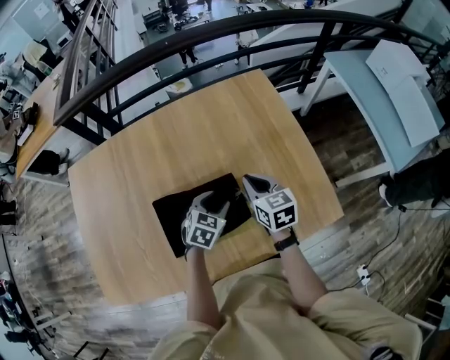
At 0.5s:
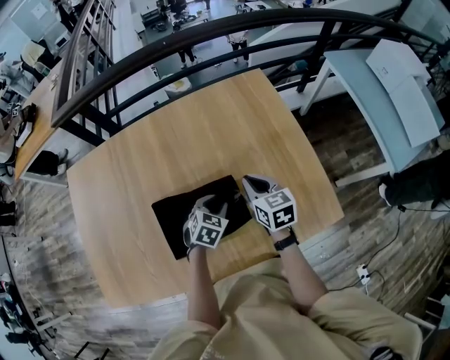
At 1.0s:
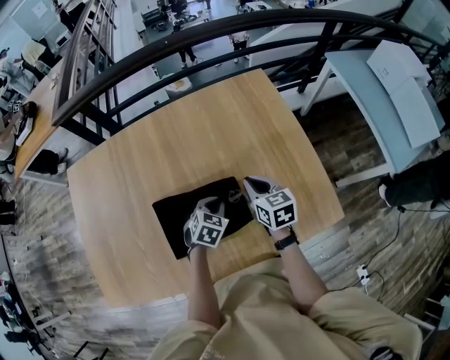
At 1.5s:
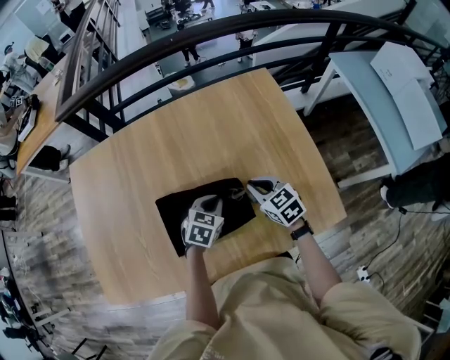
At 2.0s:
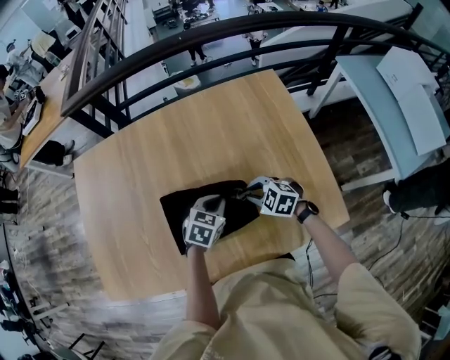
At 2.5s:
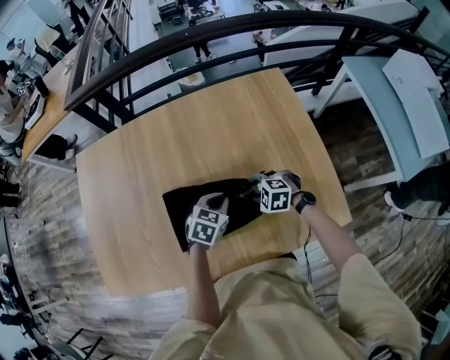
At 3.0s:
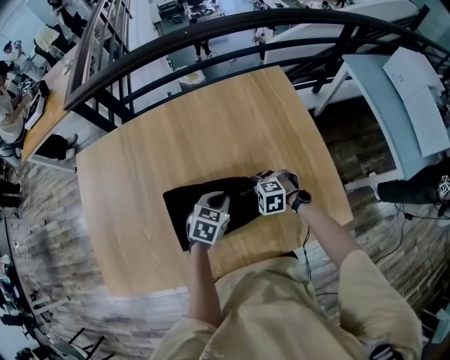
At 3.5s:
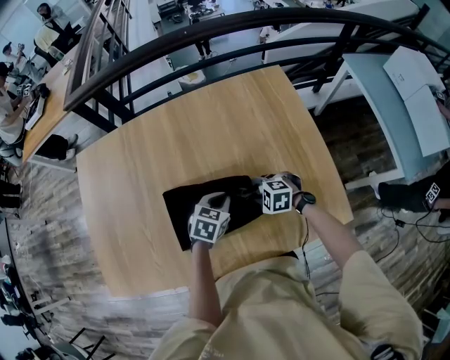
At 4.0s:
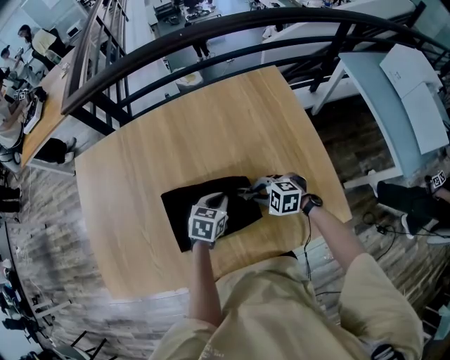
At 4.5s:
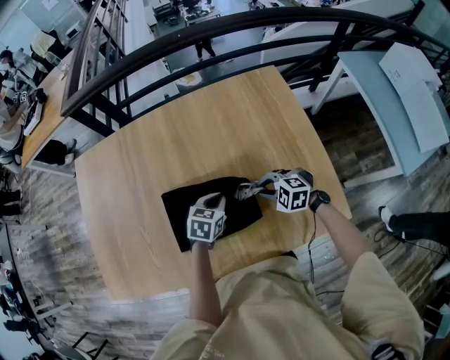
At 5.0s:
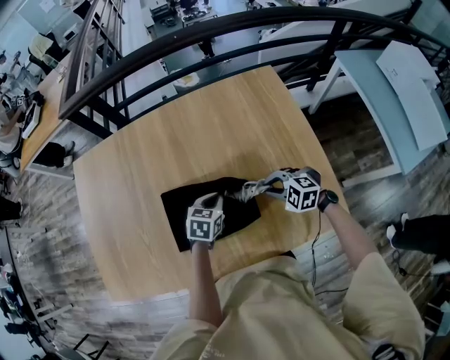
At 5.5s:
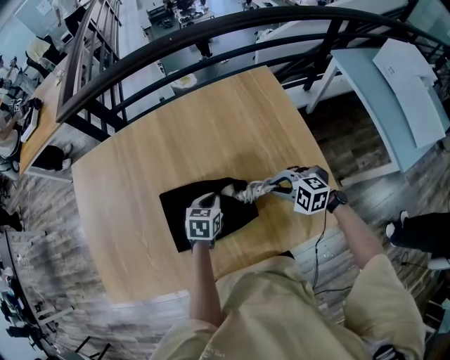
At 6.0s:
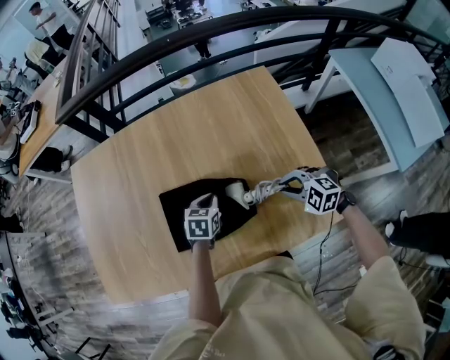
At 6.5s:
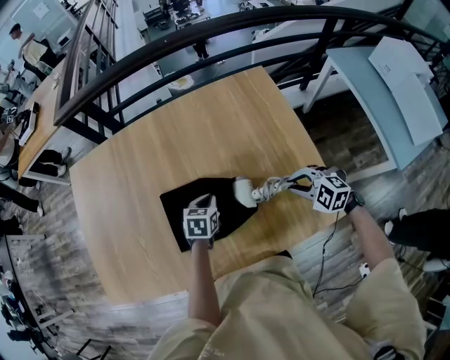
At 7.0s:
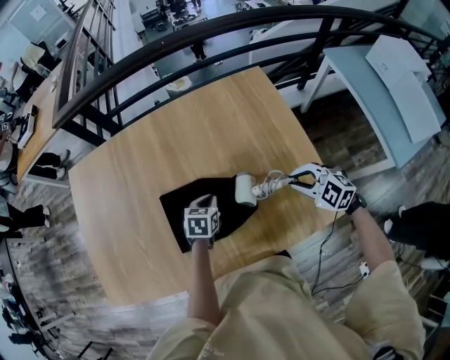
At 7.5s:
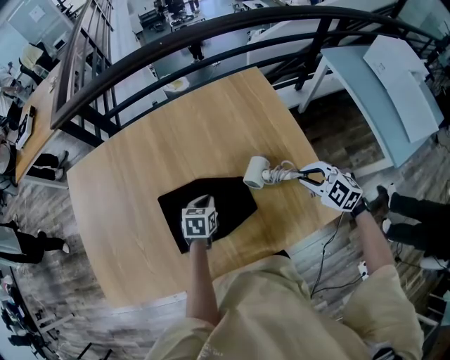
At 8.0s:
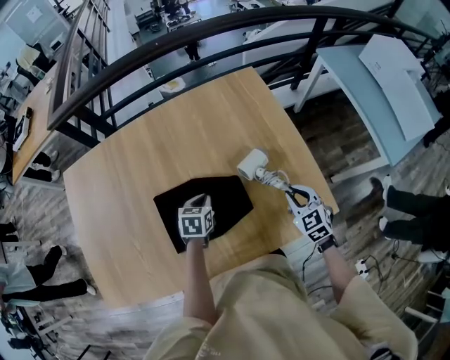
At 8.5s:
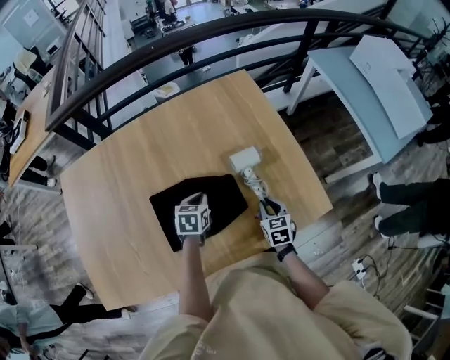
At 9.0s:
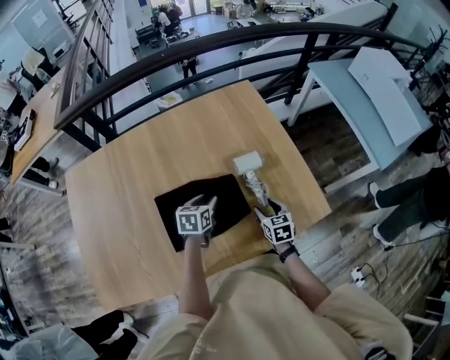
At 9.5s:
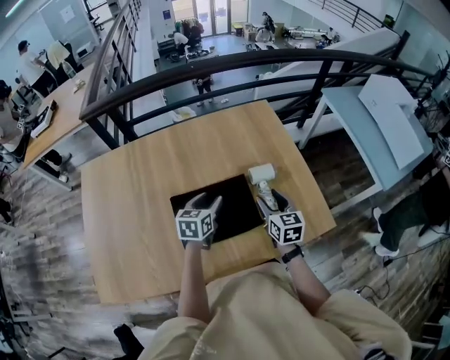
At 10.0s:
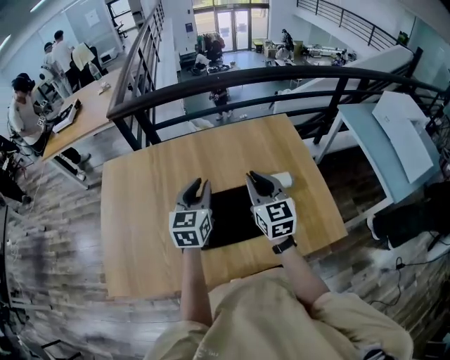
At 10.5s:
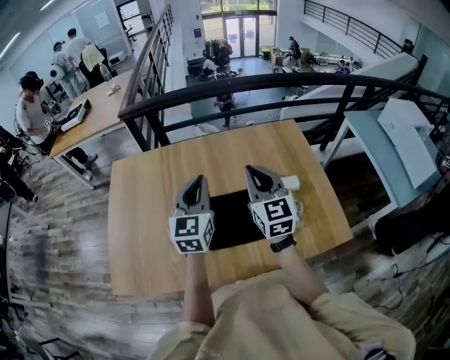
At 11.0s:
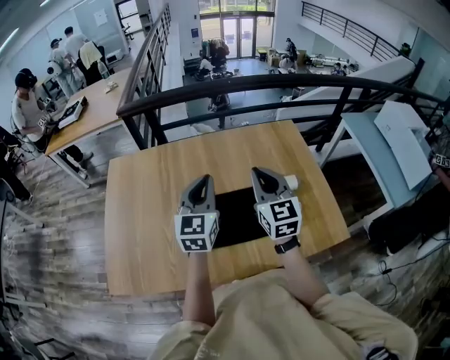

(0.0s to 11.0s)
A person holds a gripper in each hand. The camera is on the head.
0.0s - 2.0s: The right gripper shifts approximately 10 cm downward, and rotates some 60 degrees. Meanwhile the left gripper closes up.
2.0s - 3.5s: The right gripper changes place by some 5 cm.
3.5s - 5.5s: The right gripper heads to the right and upward, covering some 10 cm.
5.5s - 7.5s: The right gripper shifts about 10 cm to the right and upward, and swivels approximately 20 degrees.
7.5s - 9.0s: The left gripper opens its fingers; the right gripper shifts roughly 15 cm downward, to the left and backward, twists some 50 degrees clockwise, seen from behind, and opens up.
9.0s - 11.0s: The two grippers go roughly 35 cm upward and to the left. The left gripper points its fingers approximately 40 degrees further upward, and closes up; the right gripper points its fingers some 40 degrees further upward, and closes up.

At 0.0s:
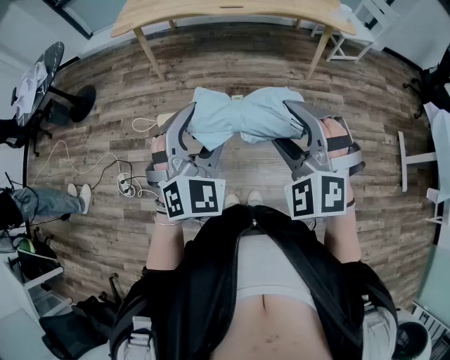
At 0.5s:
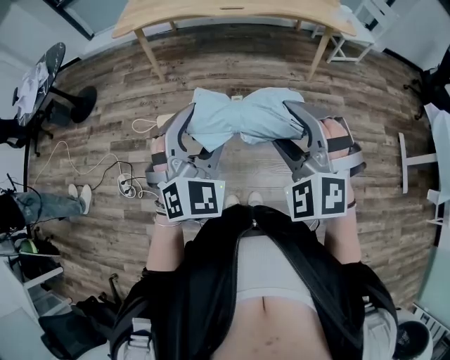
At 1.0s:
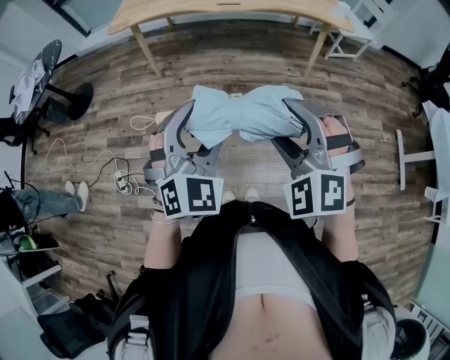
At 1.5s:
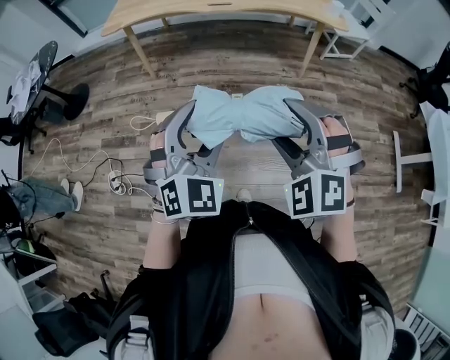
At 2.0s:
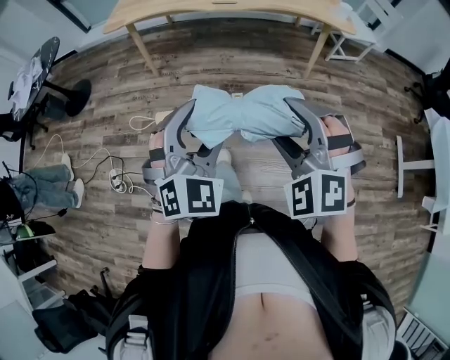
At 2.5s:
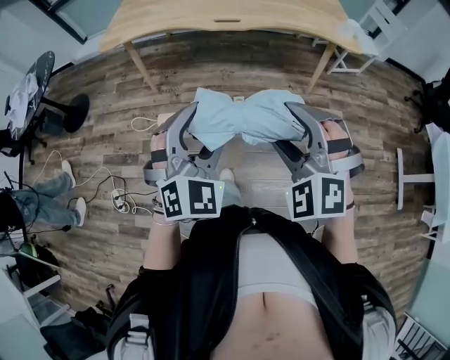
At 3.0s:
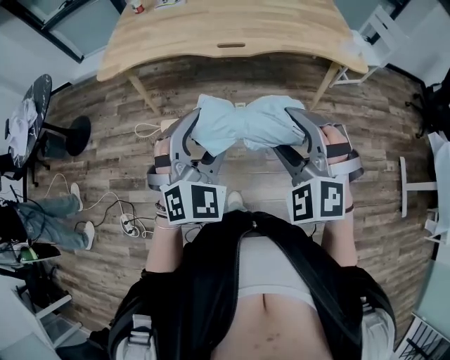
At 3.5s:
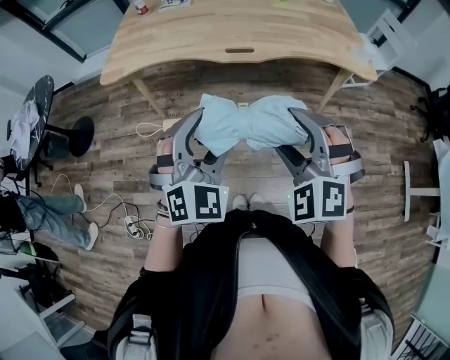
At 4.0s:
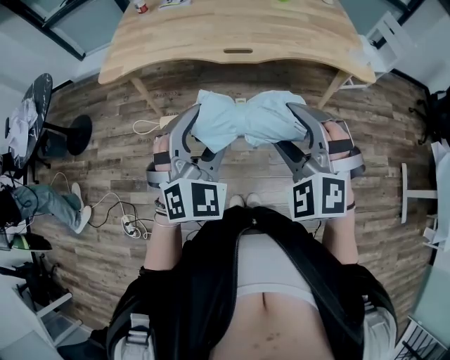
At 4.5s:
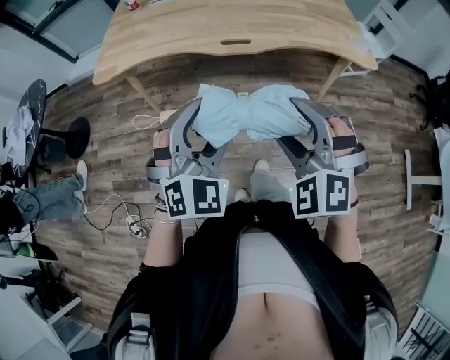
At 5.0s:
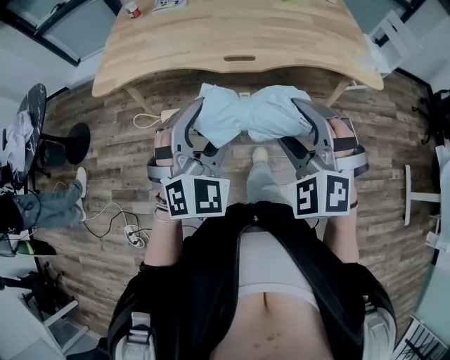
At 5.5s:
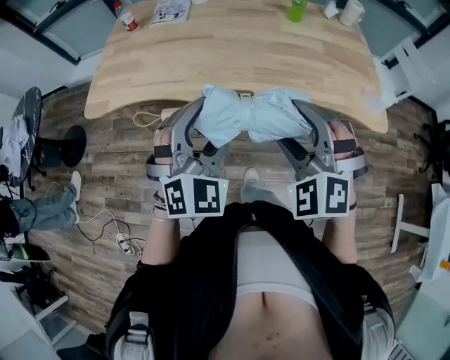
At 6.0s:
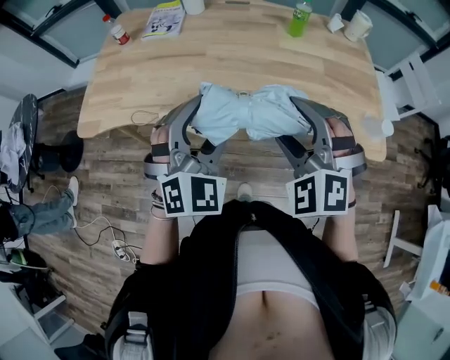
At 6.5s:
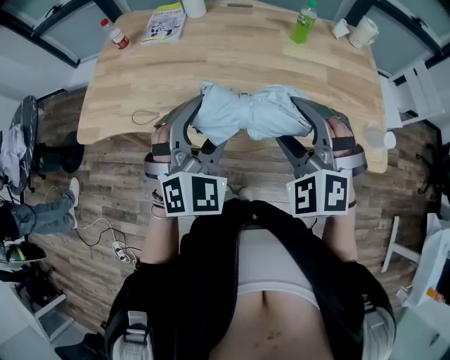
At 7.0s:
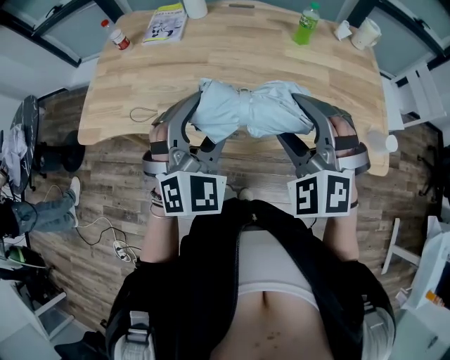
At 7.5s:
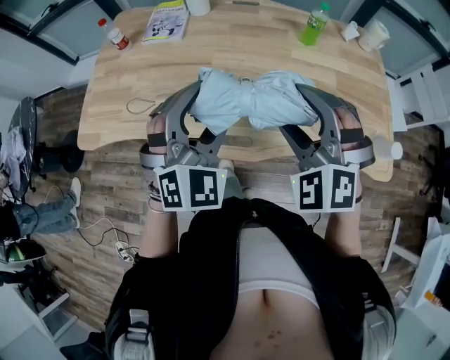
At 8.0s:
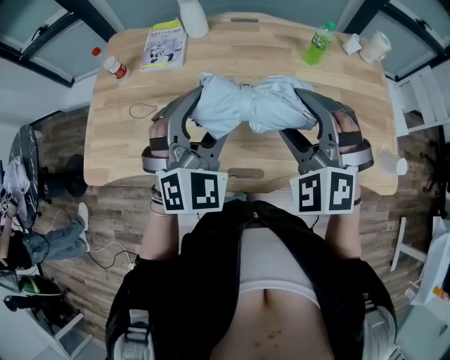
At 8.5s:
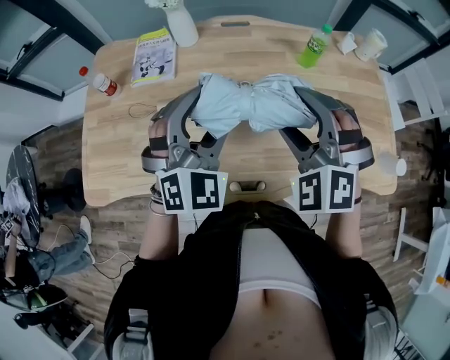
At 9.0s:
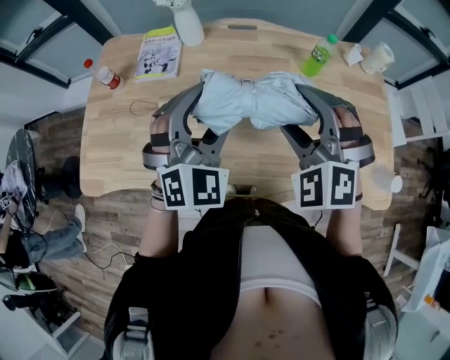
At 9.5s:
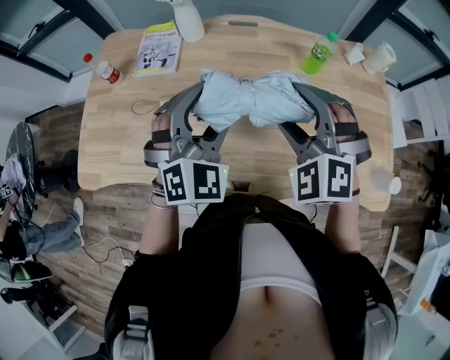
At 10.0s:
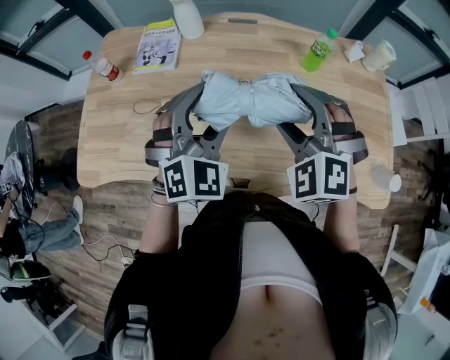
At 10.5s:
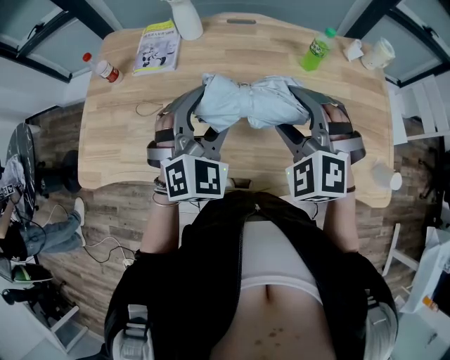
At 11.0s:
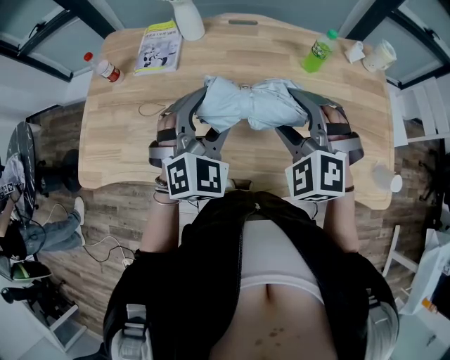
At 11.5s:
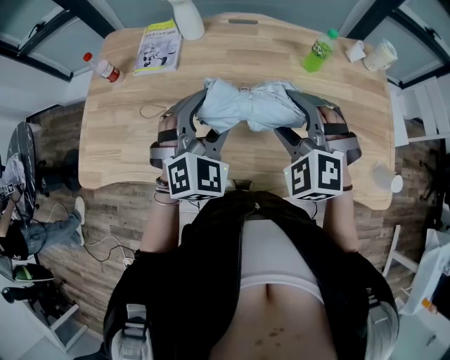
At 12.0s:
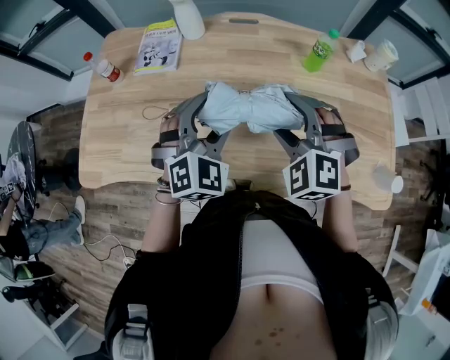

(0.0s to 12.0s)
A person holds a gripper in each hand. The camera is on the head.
0.0s - 2.0s: Both grippers move to the right, some 5 cm.
2.0s - 4.0s: The two grippers go about 30 cm forward.
4.0s - 6.0s: Both grippers move forward, approximately 35 cm.
6.0s - 8.0s: The two grippers go some 20 cm forward.
8.0s - 10.0s: The two grippers go some 5 cm forward.
10.0s - 12.0s: The grippers make only small movements.

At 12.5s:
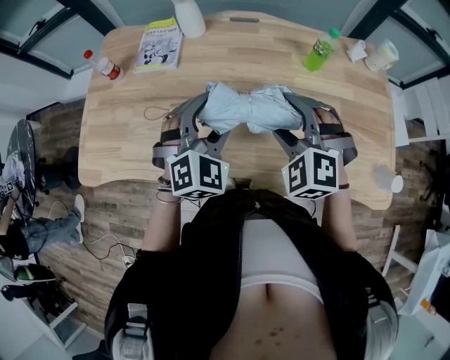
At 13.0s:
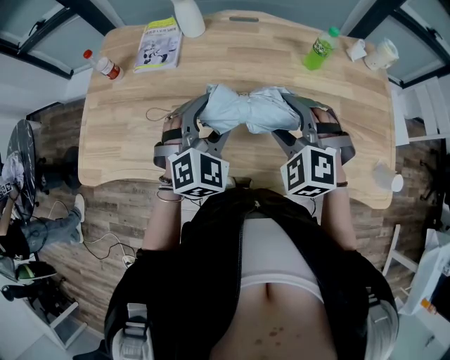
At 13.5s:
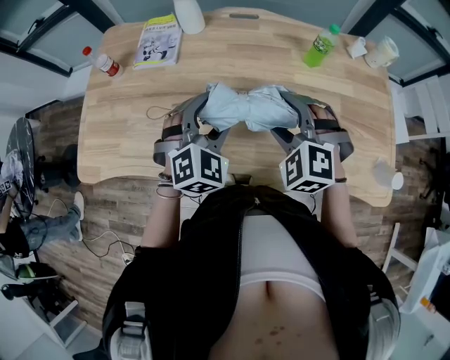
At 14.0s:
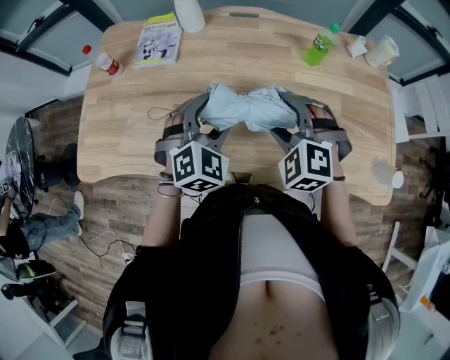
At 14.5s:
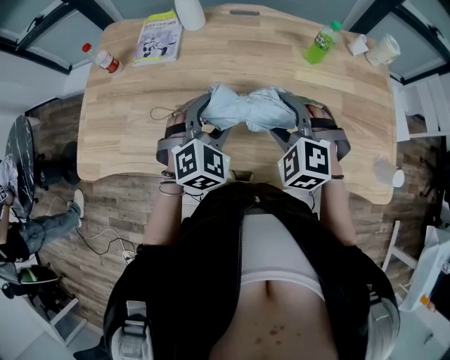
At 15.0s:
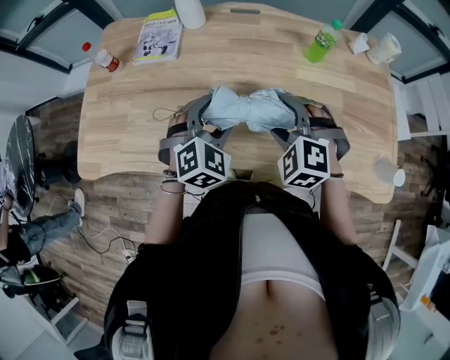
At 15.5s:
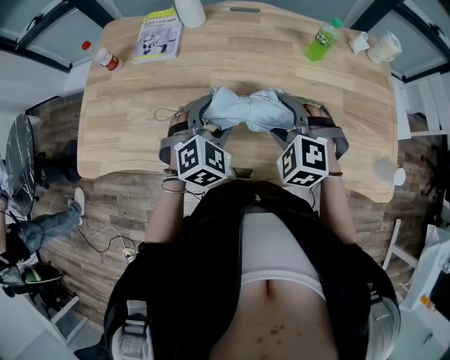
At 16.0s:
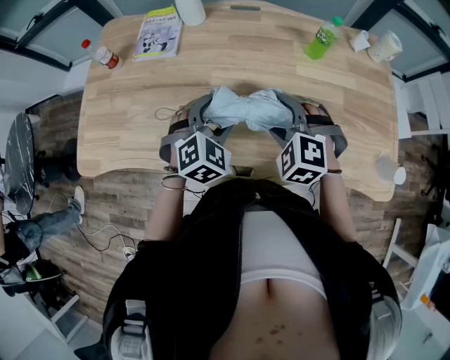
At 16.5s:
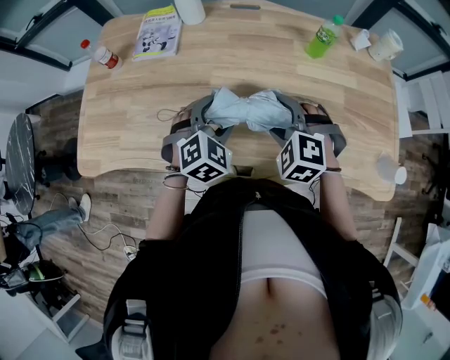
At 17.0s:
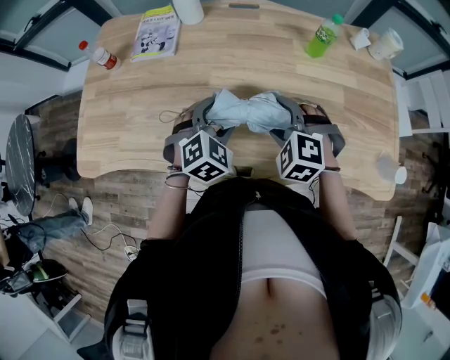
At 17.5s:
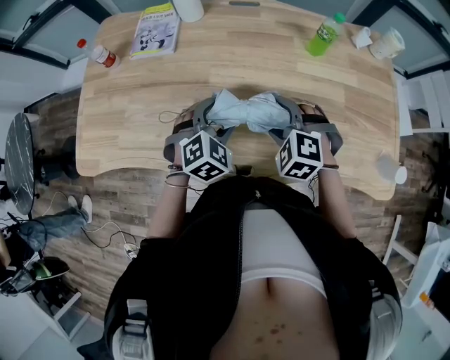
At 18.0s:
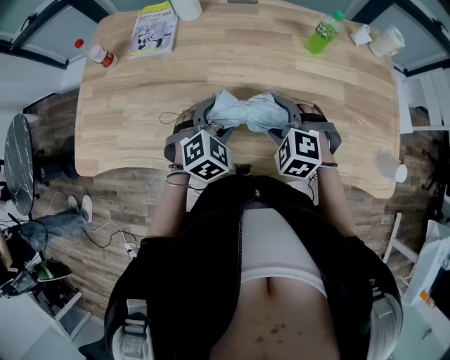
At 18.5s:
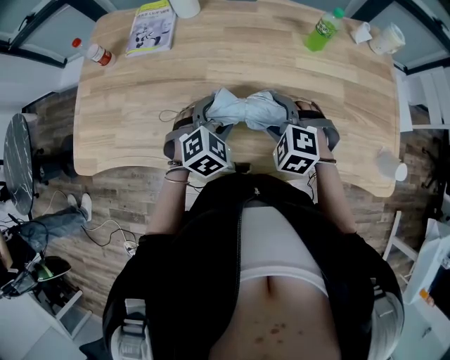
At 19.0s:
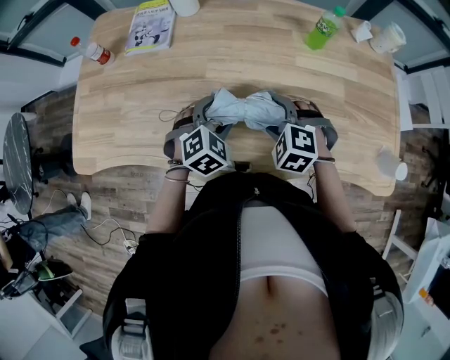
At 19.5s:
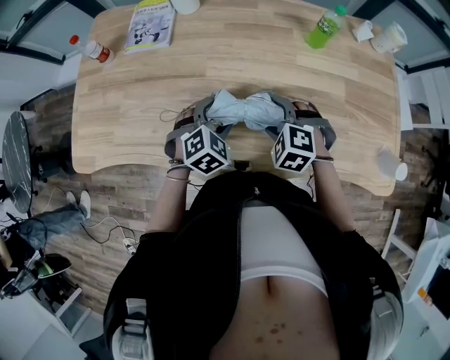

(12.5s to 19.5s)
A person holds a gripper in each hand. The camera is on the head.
12.5s - 14.5s: There are only small adjustments of the grippers.
14.5s - 16.0s: The grippers make only small movements.
16.0s - 17.5s: The grippers stay close to where they were, moving slightly.
17.5s - 19.5s: There are only small adjustments of the grippers.
